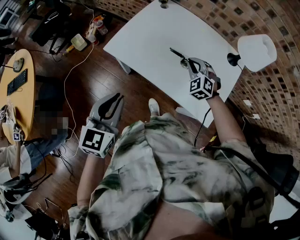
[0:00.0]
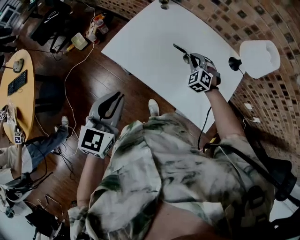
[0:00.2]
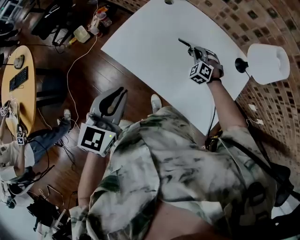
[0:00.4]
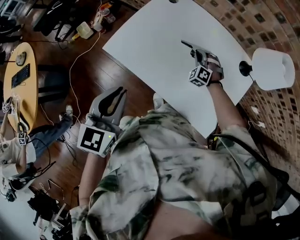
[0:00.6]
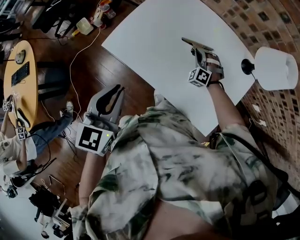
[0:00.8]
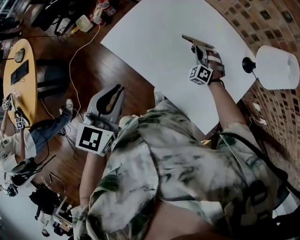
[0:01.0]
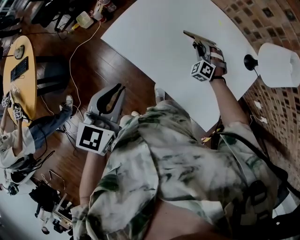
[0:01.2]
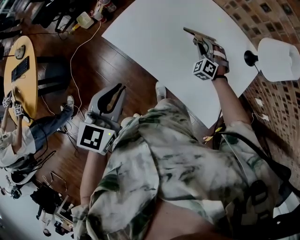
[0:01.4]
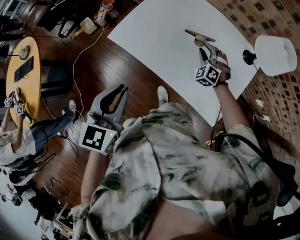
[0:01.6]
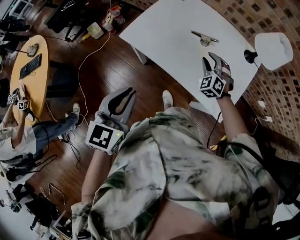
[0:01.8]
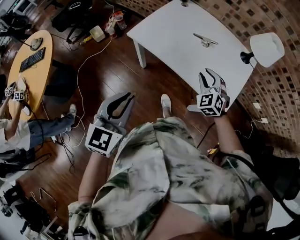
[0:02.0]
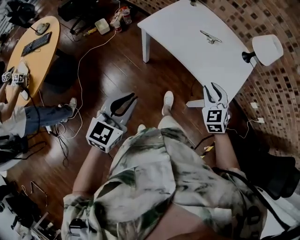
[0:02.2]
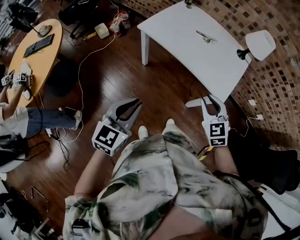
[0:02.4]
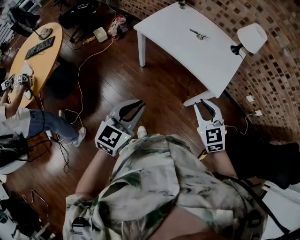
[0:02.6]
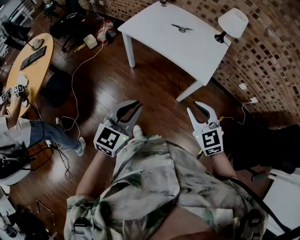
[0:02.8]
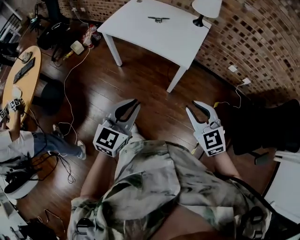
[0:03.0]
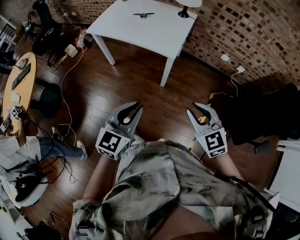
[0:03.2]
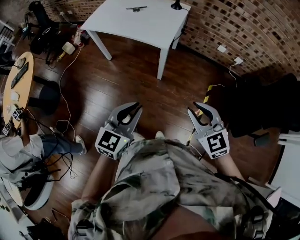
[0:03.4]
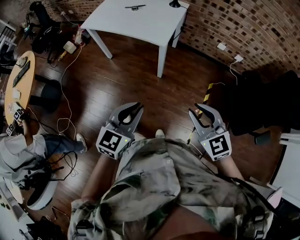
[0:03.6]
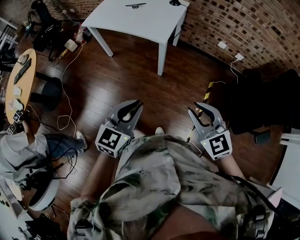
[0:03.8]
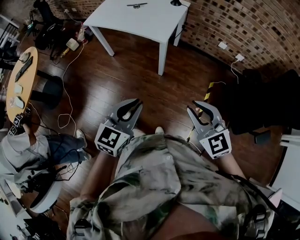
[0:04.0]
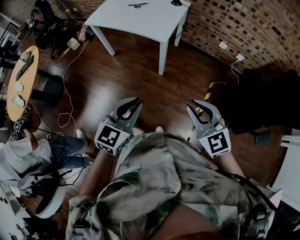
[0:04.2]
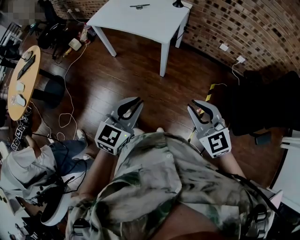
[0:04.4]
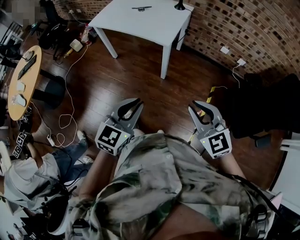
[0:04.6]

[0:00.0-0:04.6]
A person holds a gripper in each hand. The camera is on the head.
0:00.0 to 0:01.6: The left gripper moves some 10 cm forward and comes back, while the right gripper heads forward and downward, covering some 10 cm, and opens.
0:01.6 to 0:03.0: The two grippers travel together, backward, roughly 50 cm. The left gripper turns by roughly 20 degrees. Meanwhile the right gripper changes its angle by roughly 40 degrees.
0:03.0 to 0:04.6: The left gripper shifts about 20 cm to the right and backward. The right gripper is displaced backward and to the right by some 20 cm.

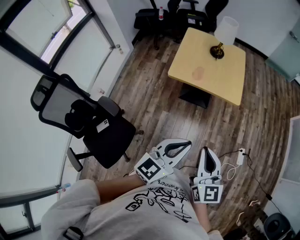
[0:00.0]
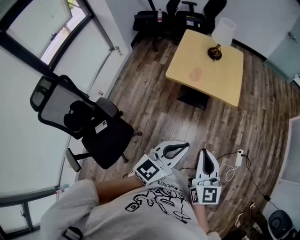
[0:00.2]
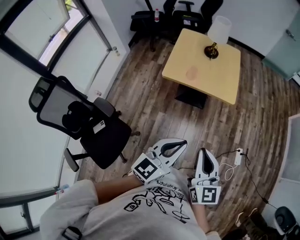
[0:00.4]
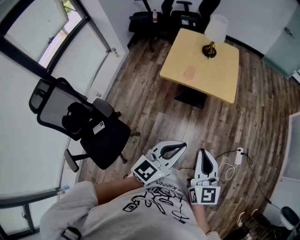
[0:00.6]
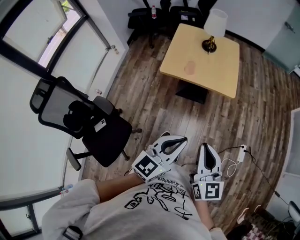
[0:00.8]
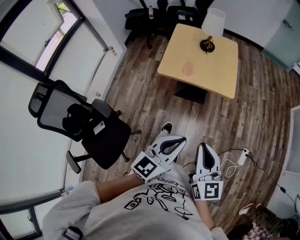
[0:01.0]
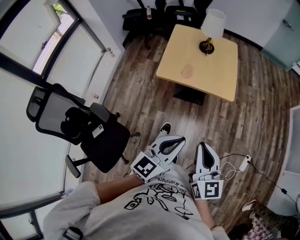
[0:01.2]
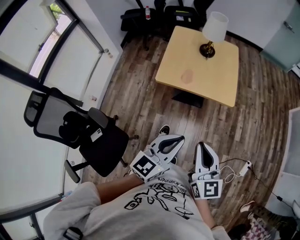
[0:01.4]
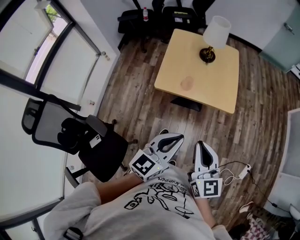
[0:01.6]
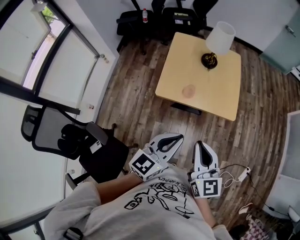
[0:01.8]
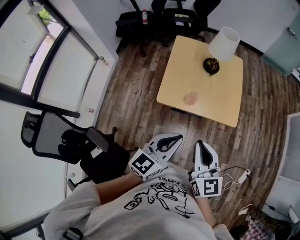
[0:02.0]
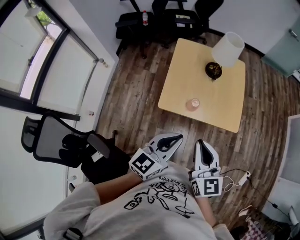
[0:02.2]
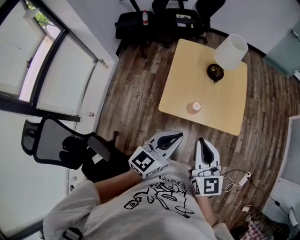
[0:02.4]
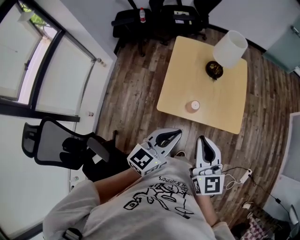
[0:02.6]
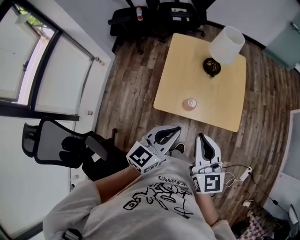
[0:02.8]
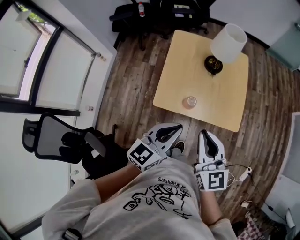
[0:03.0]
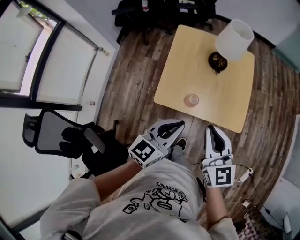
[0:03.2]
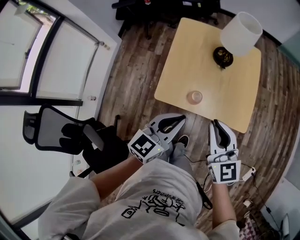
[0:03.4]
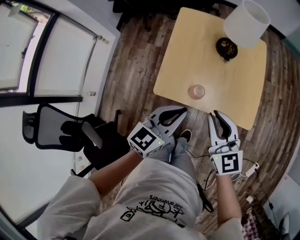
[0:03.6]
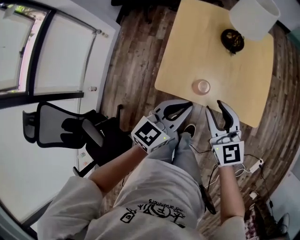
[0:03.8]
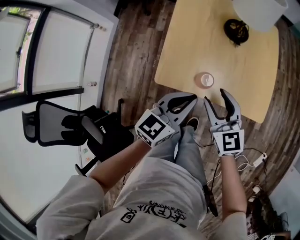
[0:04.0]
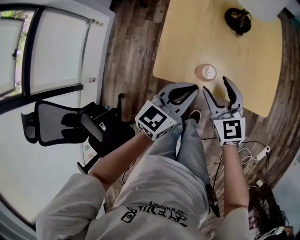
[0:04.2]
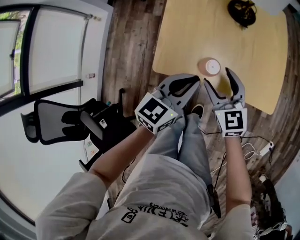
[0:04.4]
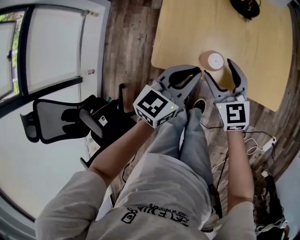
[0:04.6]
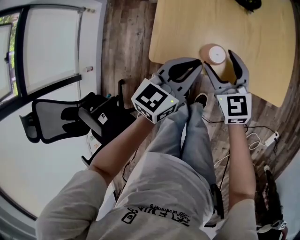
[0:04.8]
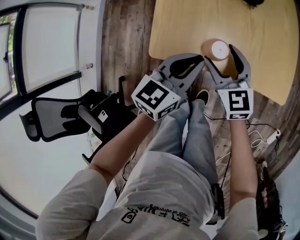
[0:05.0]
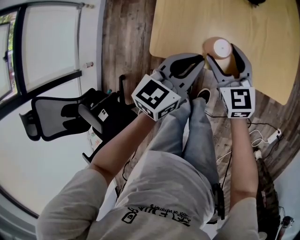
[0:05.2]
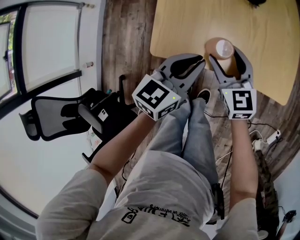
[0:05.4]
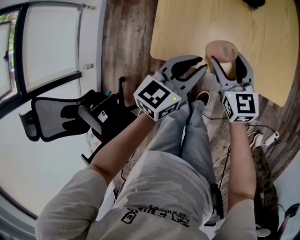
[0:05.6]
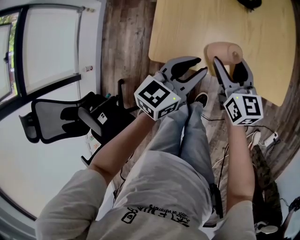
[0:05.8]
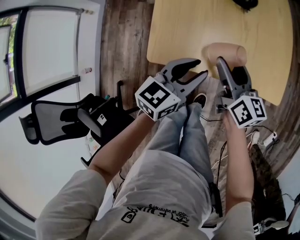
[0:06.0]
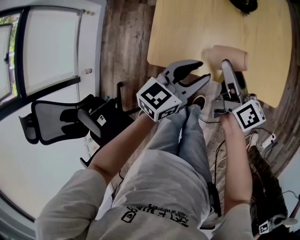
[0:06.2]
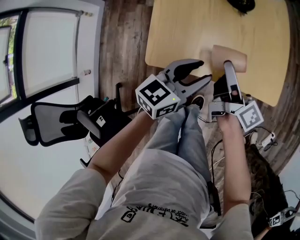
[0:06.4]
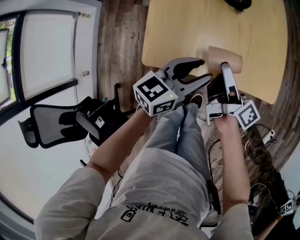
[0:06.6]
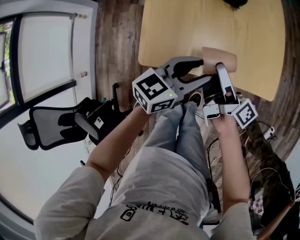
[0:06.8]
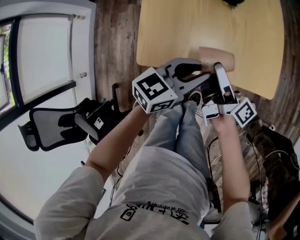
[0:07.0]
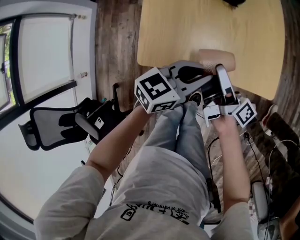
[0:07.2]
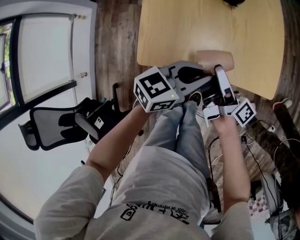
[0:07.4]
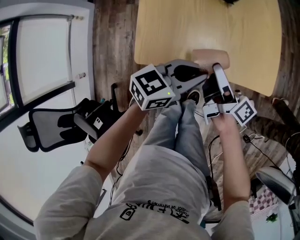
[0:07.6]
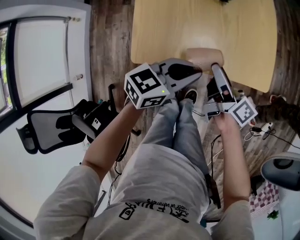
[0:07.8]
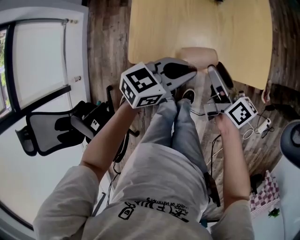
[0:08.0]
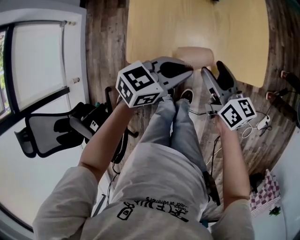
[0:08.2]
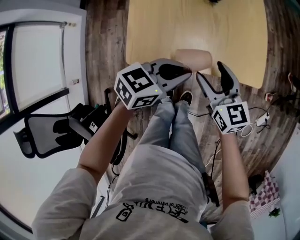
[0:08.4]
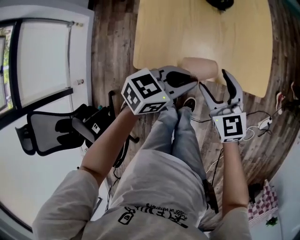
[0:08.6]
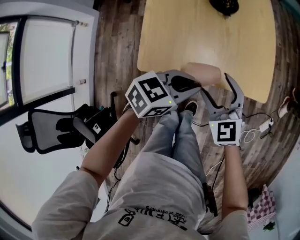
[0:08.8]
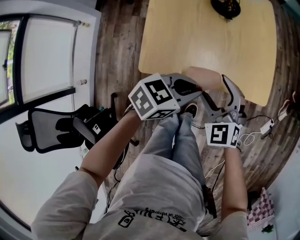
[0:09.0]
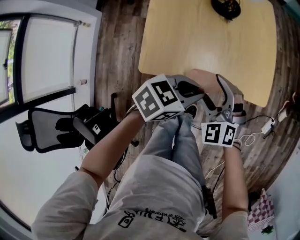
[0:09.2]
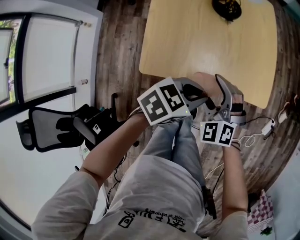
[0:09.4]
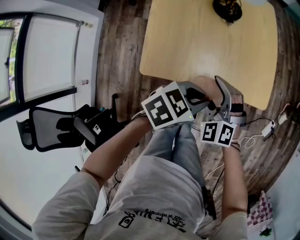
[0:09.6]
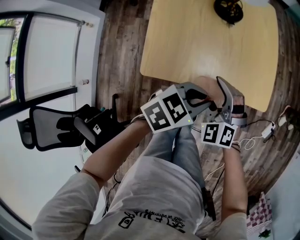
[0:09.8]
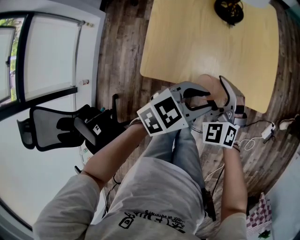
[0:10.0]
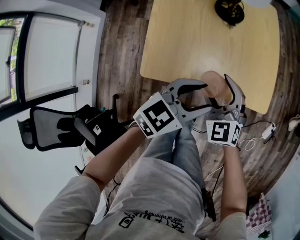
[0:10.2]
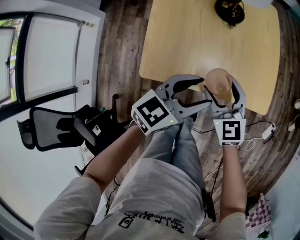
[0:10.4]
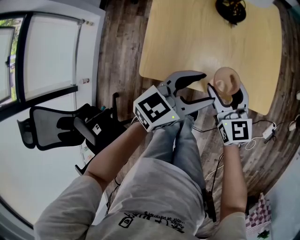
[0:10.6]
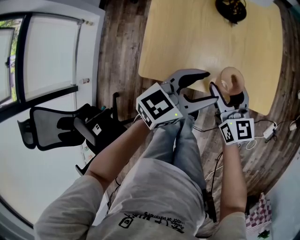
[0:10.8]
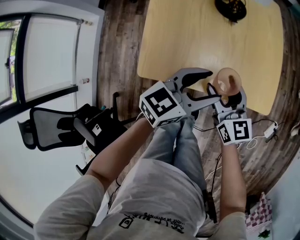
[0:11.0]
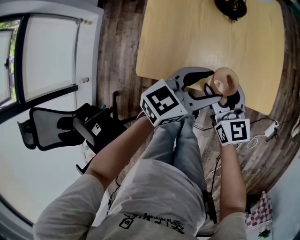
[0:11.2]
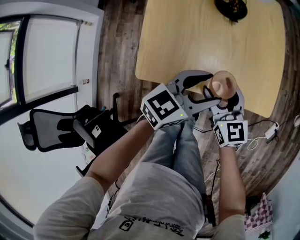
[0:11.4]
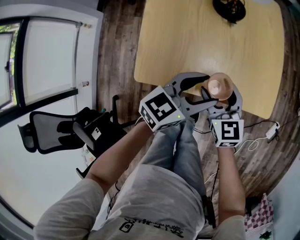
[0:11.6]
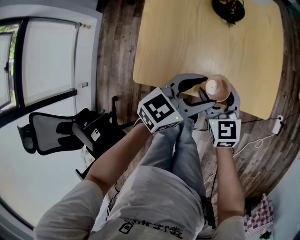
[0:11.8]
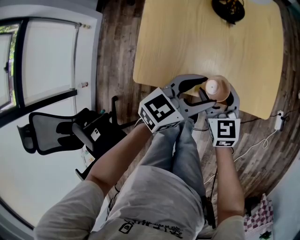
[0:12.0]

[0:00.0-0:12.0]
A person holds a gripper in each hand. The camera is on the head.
0:00.0 to 0:01.6: The grippers both shift forward by roughly 15 cm.
0:01.6 to 0:03.0: The grippers both shift forward by roughly 20 cm.
0:03.0 to 0:04.4: The grippers both shift downward and forward by approximately 25 cm. The right gripper opens.
0:04.4 to 0:06.0: The right gripper shifts by about 5 cm, and swivels approximately 40 degrees.
0:06.0 to 0:07.6: The left gripper moves to the right, some 5 cm, and turns by about 20 degrees. Meanwhile the right gripper rolls clockwise, seen from behind, by roughly 40 degrees.
0:07.6 to 0:09.0: The right gripper twists roughly 110 degrees counterclockwise, seen from behind.
0:09.0 to 0:10.4: The left gripper turns by approximately 20 degrees, and opens up; the right gripper changes its angle by about 20 degrees.
0:10.4 to 0:12.0: Both grippers travel together downward, about 5 cm.

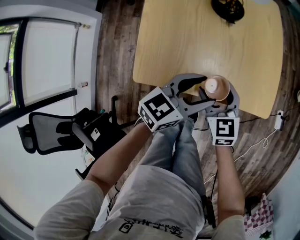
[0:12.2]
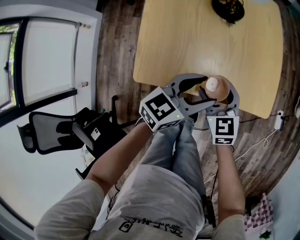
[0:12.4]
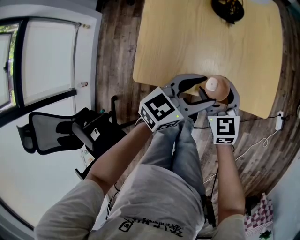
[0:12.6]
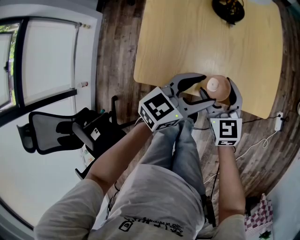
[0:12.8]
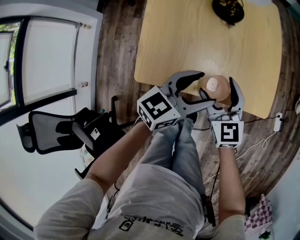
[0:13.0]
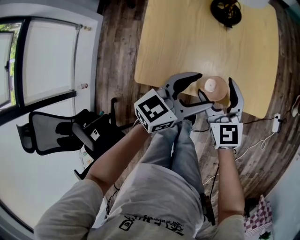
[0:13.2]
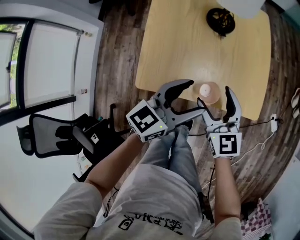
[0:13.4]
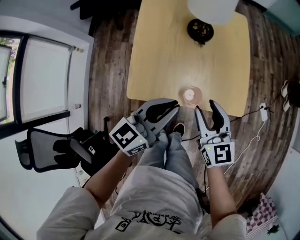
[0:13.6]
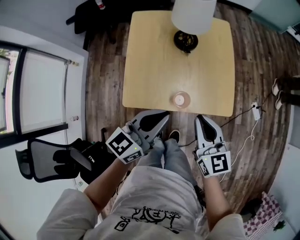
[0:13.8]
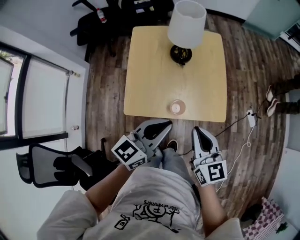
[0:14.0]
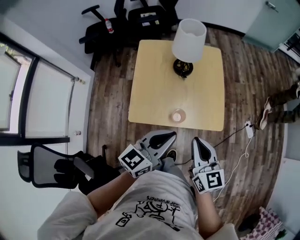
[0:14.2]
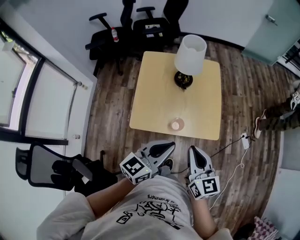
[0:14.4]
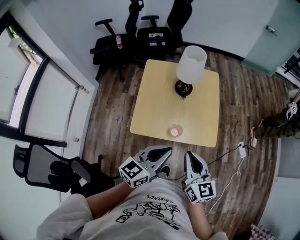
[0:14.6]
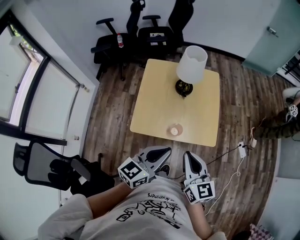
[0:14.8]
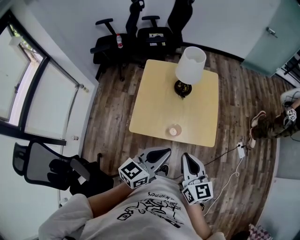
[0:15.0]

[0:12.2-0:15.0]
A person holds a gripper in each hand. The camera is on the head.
0:12.2 to 0:13.6: The two grippers go about 15 cm upward. The left gripper closes up.
0:13.6 to 0:15.0: The right gripper goes approximately 20 cm upward and backward, and closes; the left gripper moves upward, backward and to the right, approximately 15 cm.

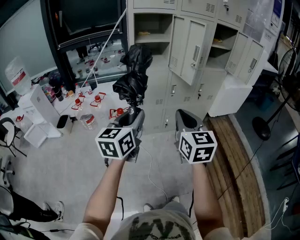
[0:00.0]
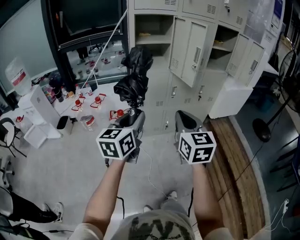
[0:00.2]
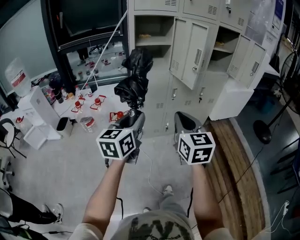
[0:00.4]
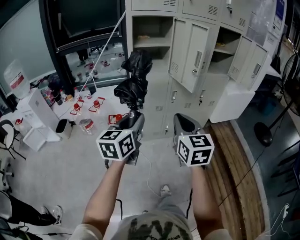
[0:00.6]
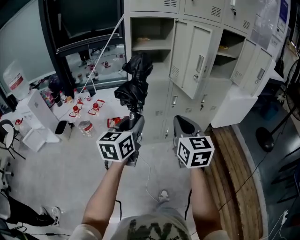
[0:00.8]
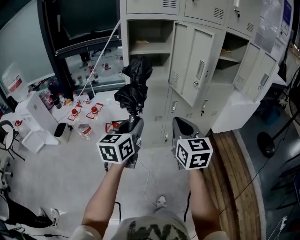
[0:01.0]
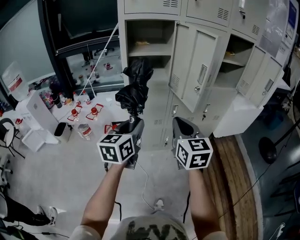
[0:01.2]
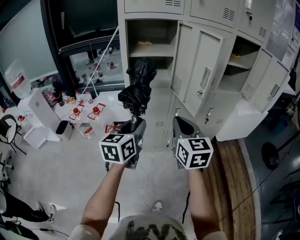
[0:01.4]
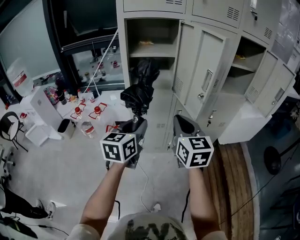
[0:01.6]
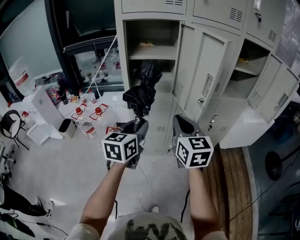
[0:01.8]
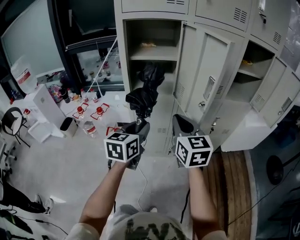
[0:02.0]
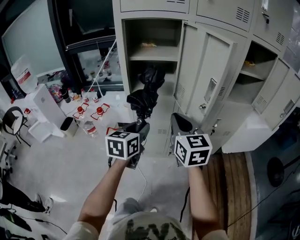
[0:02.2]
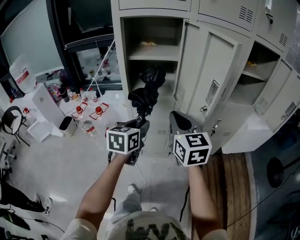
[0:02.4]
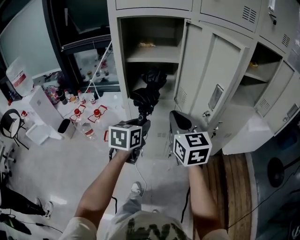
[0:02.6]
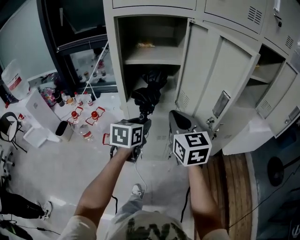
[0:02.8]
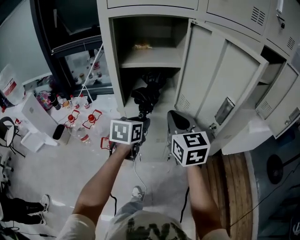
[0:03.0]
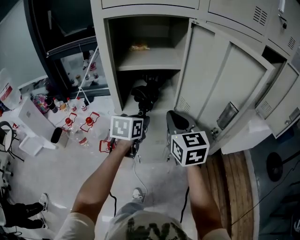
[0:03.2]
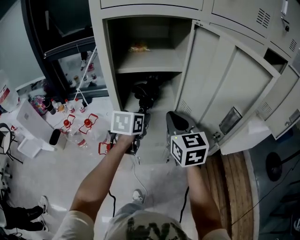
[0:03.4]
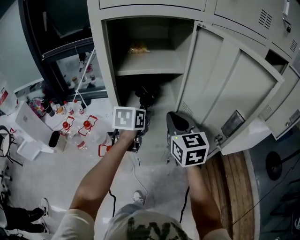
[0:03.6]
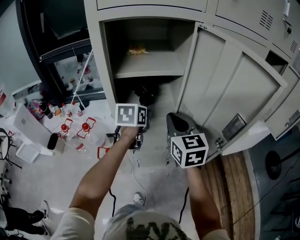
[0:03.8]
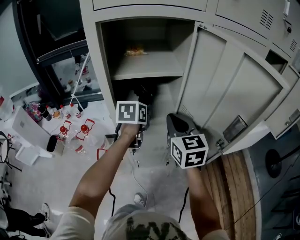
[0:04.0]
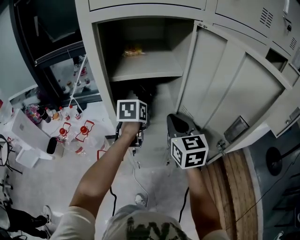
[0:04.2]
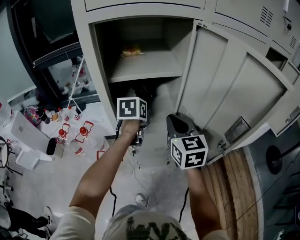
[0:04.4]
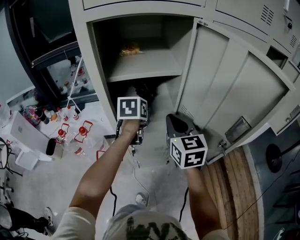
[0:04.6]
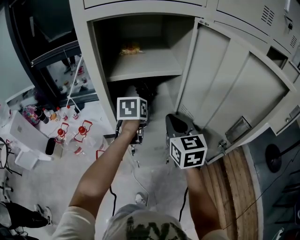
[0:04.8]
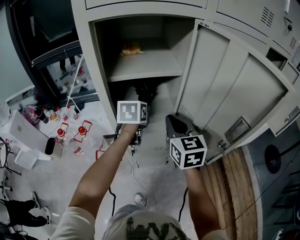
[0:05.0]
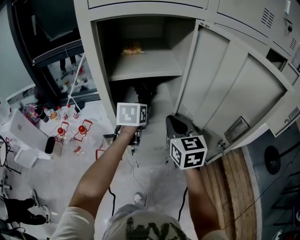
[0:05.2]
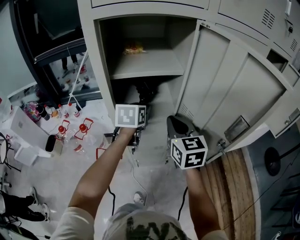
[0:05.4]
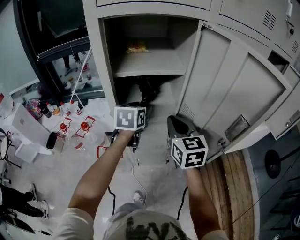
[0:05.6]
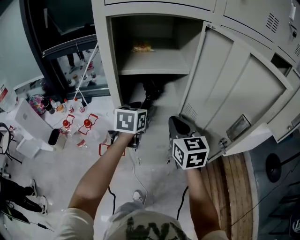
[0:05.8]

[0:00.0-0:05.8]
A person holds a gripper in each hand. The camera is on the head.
0:00.0 to 0:01.4: Both grippers travel together forward, about 20 cm.
0:01.4 to 0:02.8: Both grippers move forward, some 20 cm.
0:02.8 to 0:04.4: The right gripper travels forward by roughly 10 cm. Meanwhile the left gripper is displaced forward by about 15 cm.
0:04.4 to 0:05.8: The left gripper moves some 5 cm, and opens.
